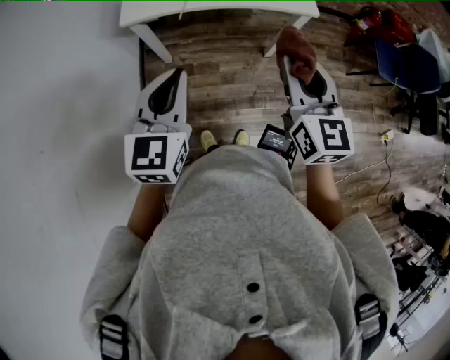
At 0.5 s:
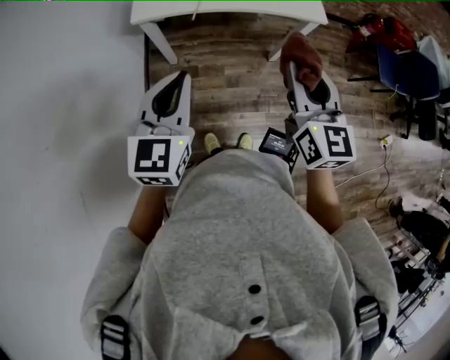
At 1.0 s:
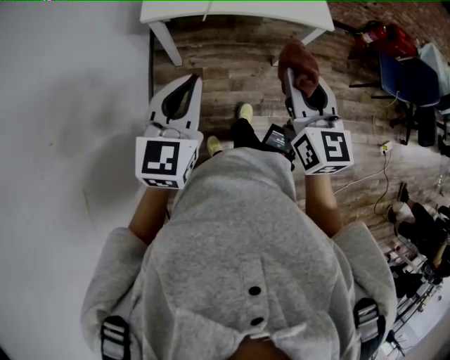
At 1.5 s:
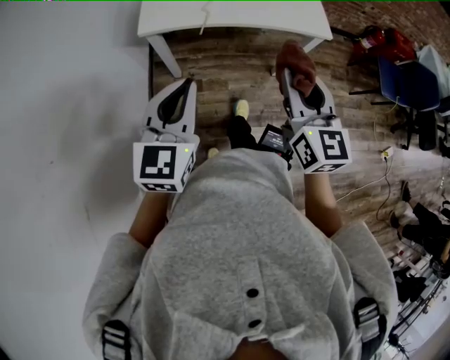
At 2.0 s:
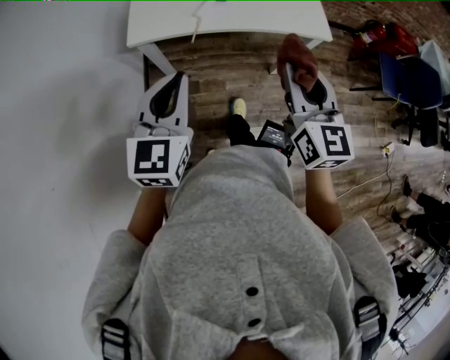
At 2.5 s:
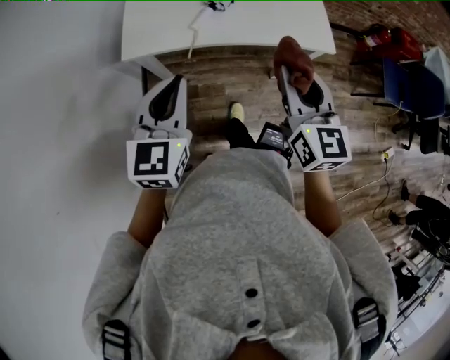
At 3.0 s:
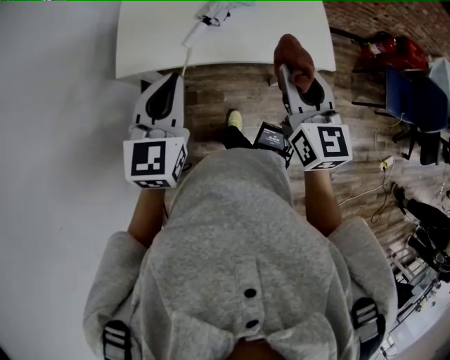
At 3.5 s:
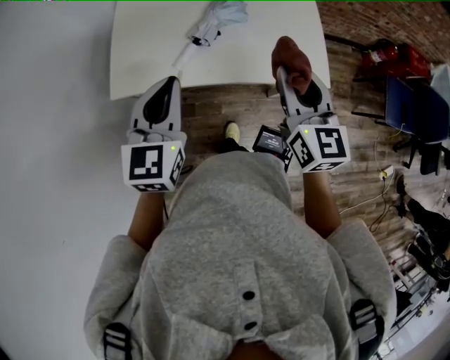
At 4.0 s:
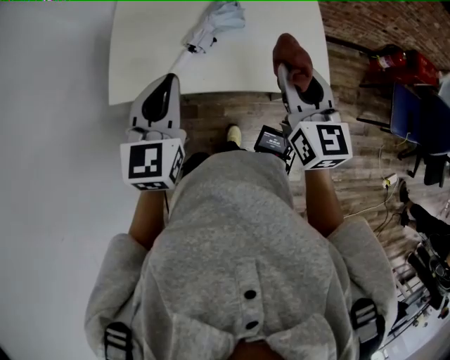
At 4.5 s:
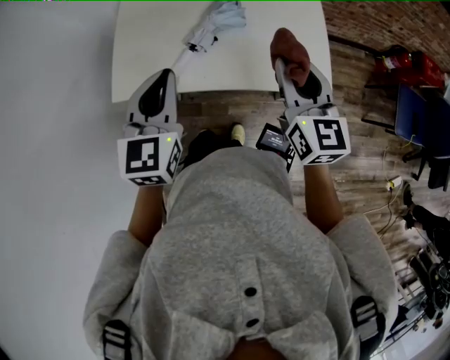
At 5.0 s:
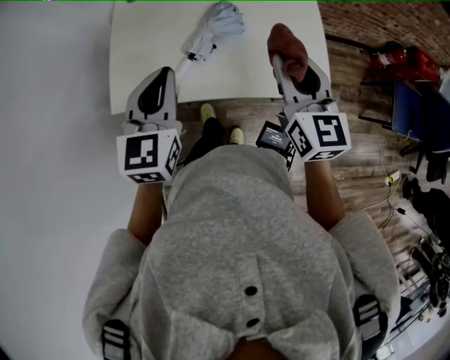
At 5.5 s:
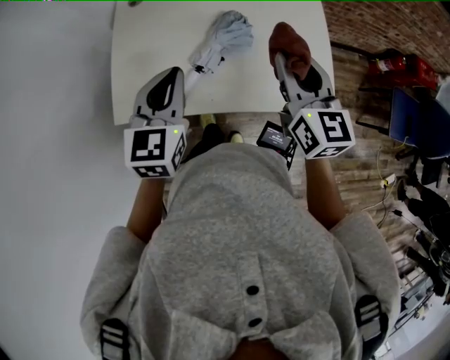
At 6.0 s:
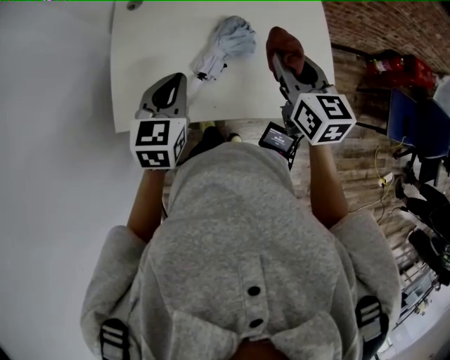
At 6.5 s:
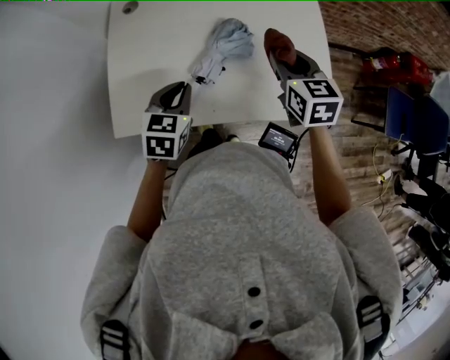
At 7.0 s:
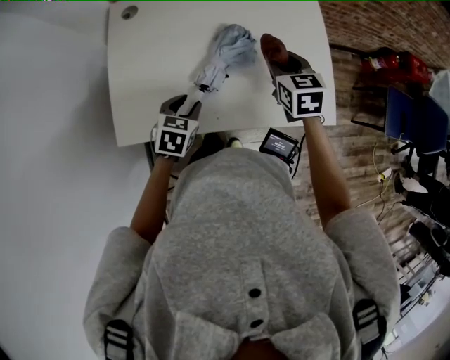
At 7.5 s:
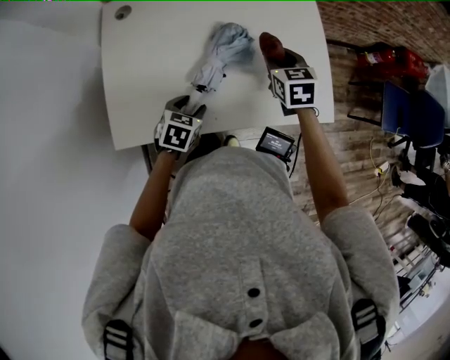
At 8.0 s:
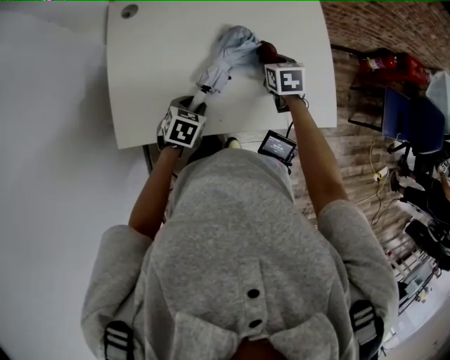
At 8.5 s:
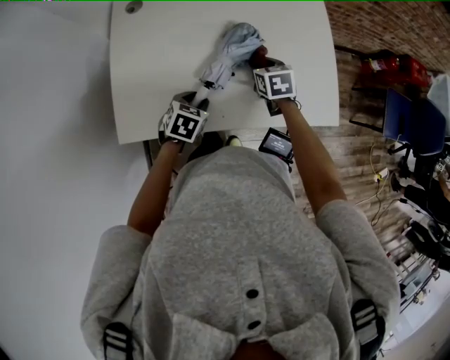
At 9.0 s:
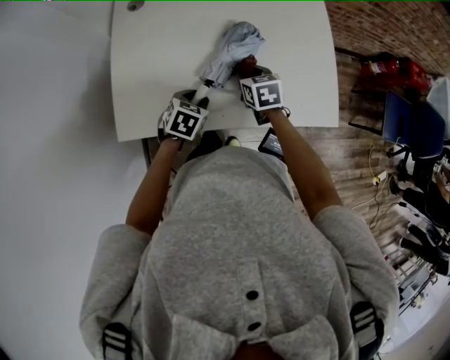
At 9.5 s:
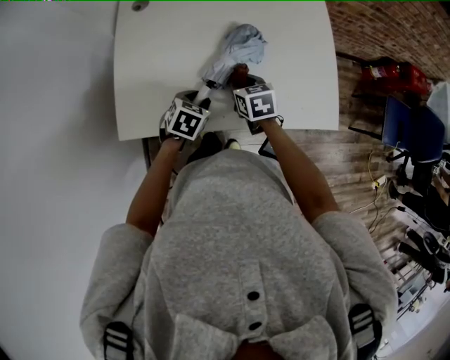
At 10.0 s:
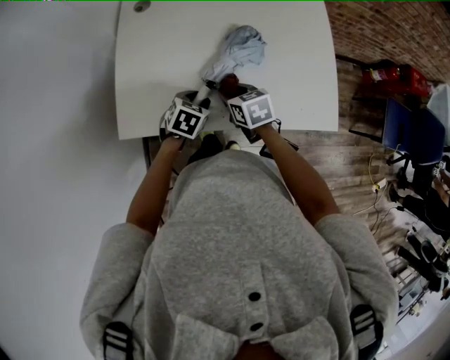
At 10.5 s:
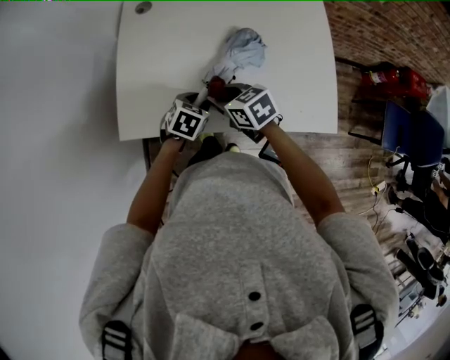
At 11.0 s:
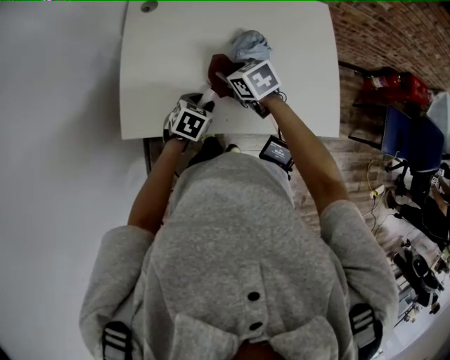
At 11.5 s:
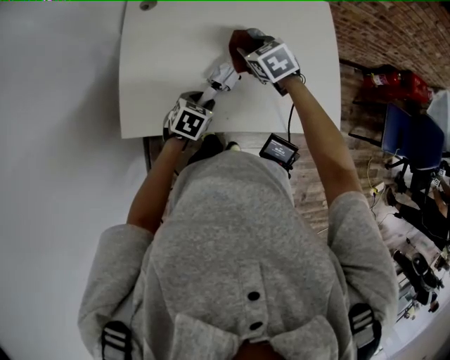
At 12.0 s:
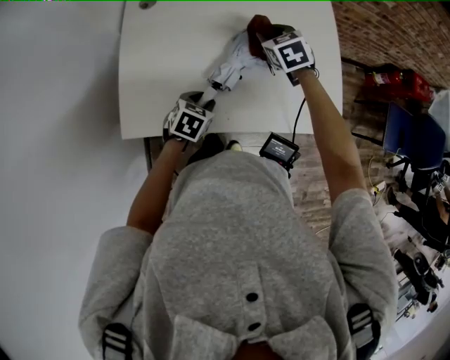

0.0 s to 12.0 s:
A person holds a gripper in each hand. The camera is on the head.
0.0 to 2.0 s: Both grippers move forward and to the left, approximately 10 cm.
2.0 to 4.0 s: Both grippers travel together forward, some 30 cm.
4.0 to 6.0 s: The left gripper shifts about 15 cm forward and downward. Meanwhile the right gripper is displaced forward by roughly 15 cm.
6.0 to 8.0 s: The left gripper goes approximately 20 cm downward, turns by about 30 degrees, and opens its fingers. The right gripper goes about 20 cm downward and forward, and turns by some 30 degrees.
8.0 to 10.0 s: The right gripper shifts approximately 20 cm to the left and backward, and rotates approximately 20 degrees.
10.0 to 12.0 s: The right gripper shifts roughly 20 cm forward, to the right and upward, and turns by approximately 30 degrees.

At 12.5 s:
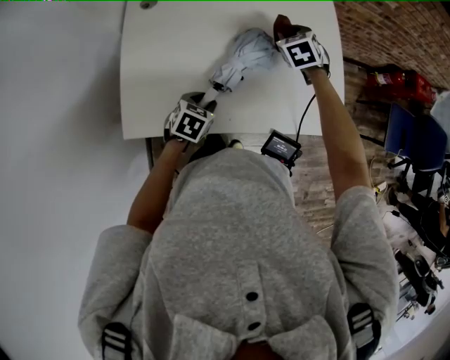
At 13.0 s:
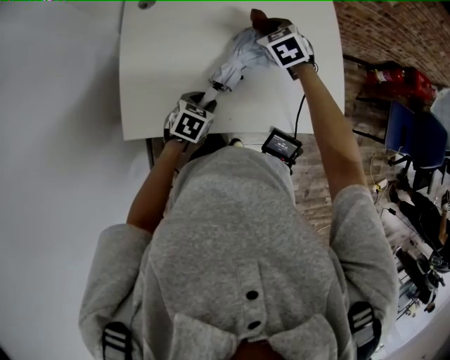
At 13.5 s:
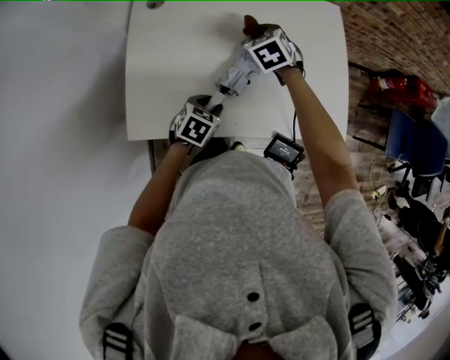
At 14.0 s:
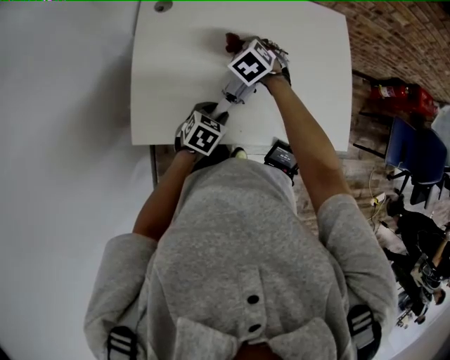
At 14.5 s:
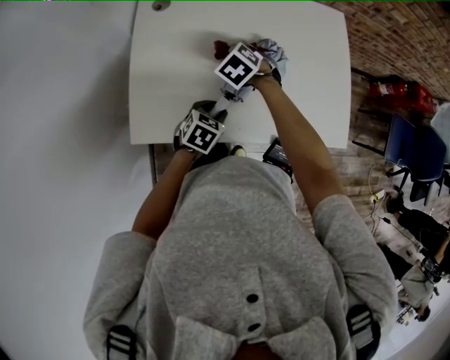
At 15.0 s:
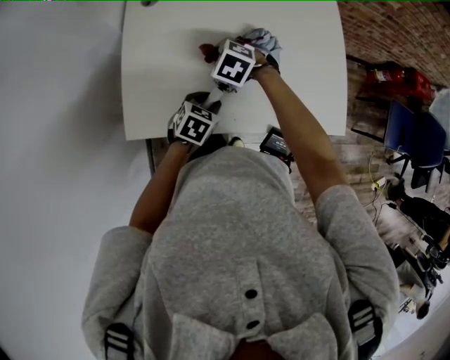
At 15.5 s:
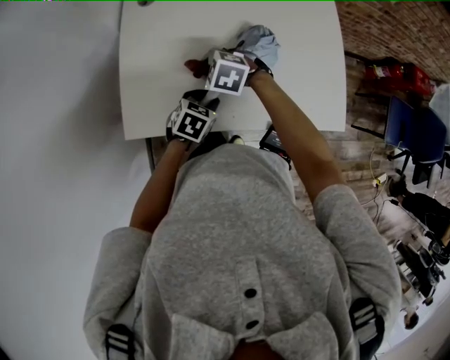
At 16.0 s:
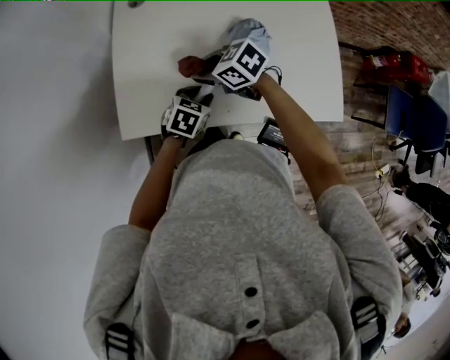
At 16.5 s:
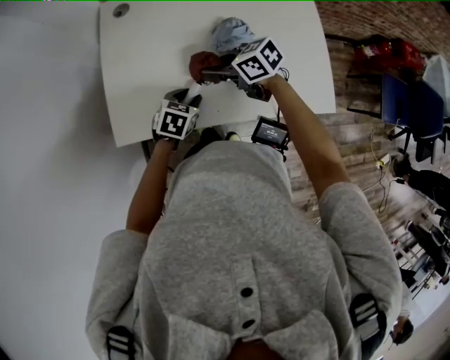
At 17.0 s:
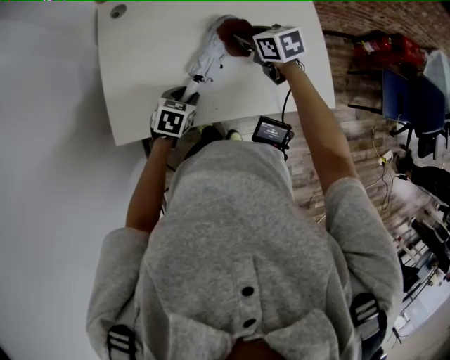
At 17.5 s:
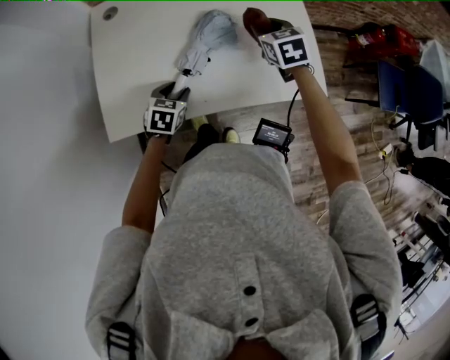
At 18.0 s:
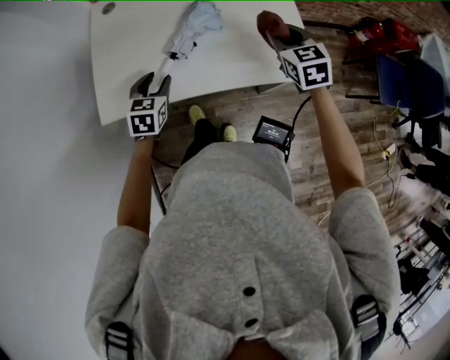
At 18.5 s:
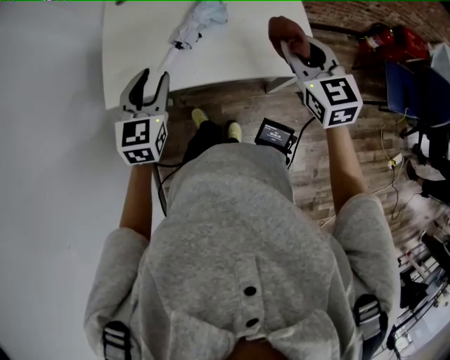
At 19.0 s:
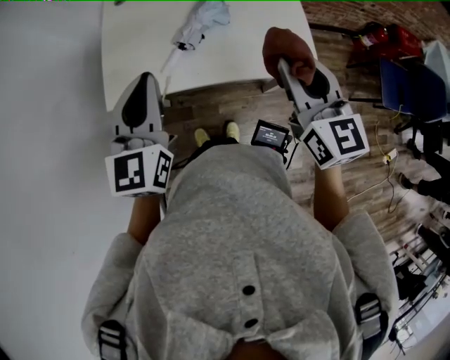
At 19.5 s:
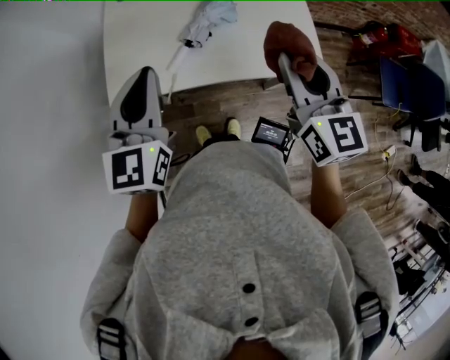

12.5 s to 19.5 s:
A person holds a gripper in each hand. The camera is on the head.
12.5 to 14.5 s: The right gripper shifts approximately 25 cm to the left and backward, and turns by approximately 30 degrees.
14.5 to 16.0 s: The right gripper changes place by approximately 10 cm, and rotates roughly 40 degrees.
16.0 to 17.5 s: The right gripper moves about 30 cm, and turns by about 50 degrees.
17.5 to 19.5 s: The right gripper moves backward and upward, roughly 35 cm, and tilts its fingers approximately 30 degrees upward, while the left gripper shifts roughly 35 cm upward, tilts its fingers some 40 degrees upward, and closes its fingers.

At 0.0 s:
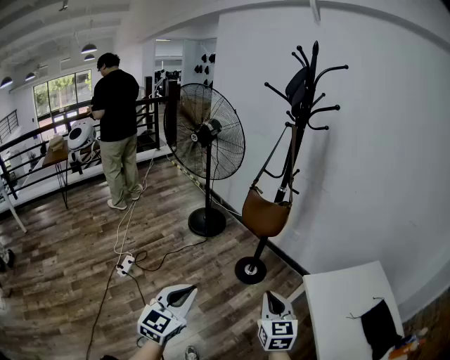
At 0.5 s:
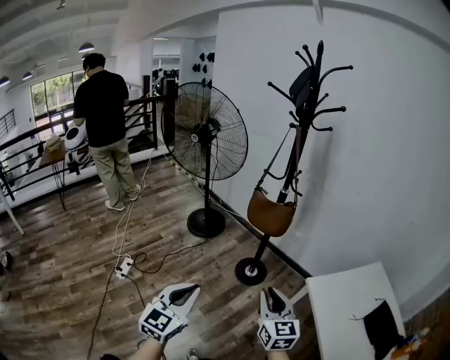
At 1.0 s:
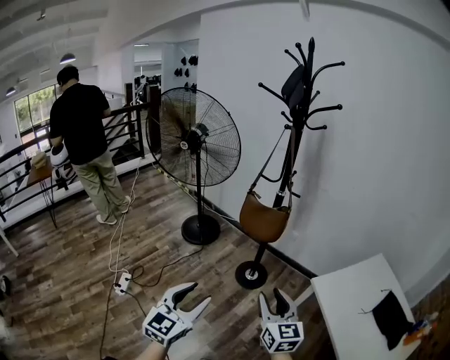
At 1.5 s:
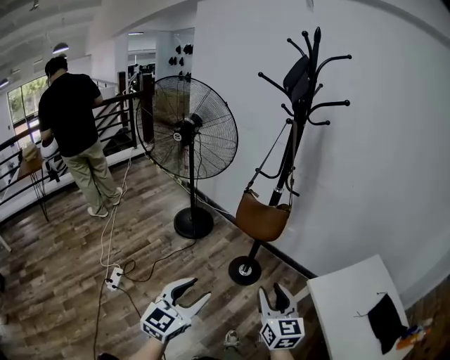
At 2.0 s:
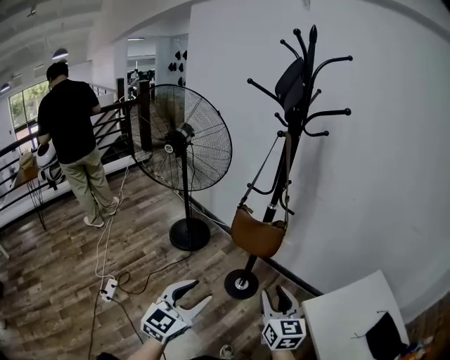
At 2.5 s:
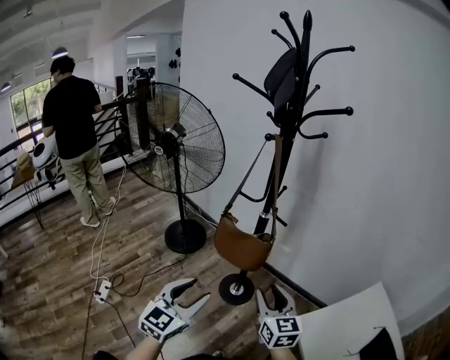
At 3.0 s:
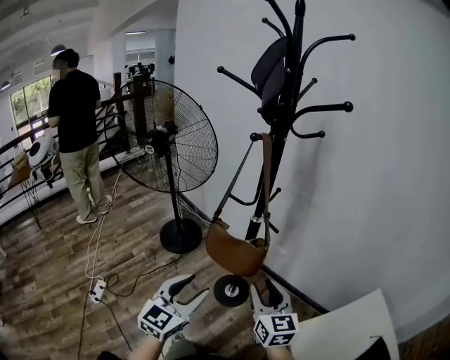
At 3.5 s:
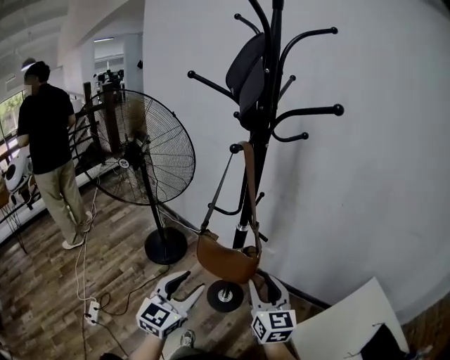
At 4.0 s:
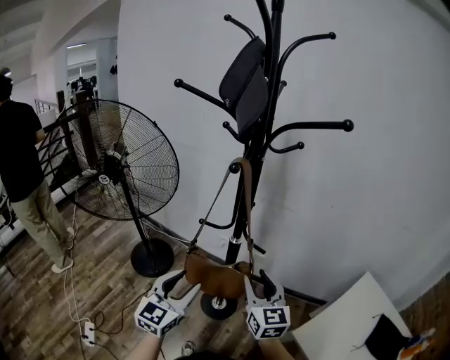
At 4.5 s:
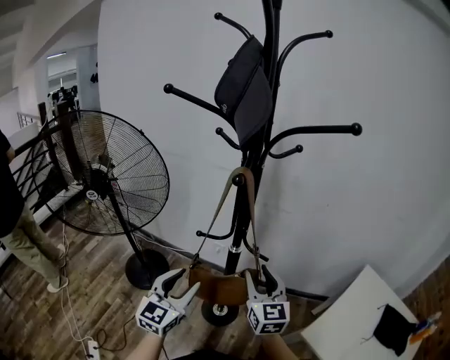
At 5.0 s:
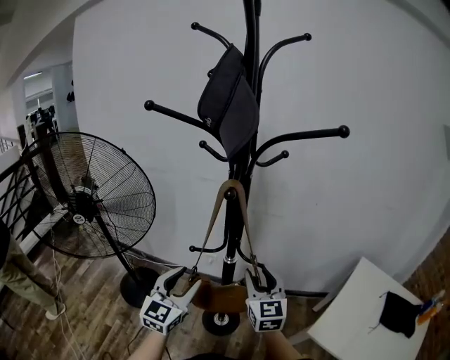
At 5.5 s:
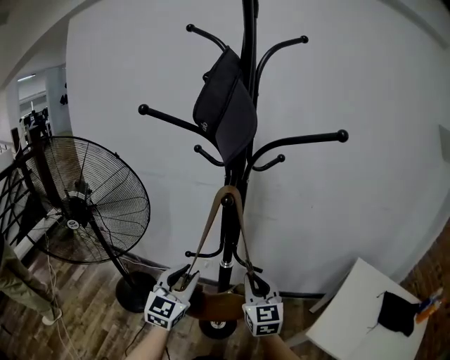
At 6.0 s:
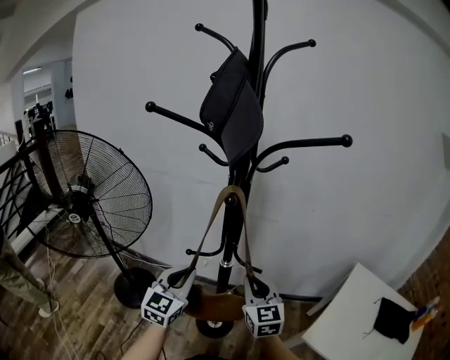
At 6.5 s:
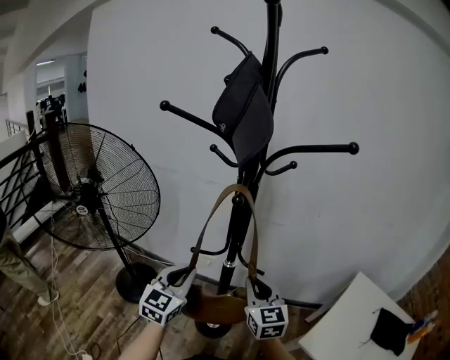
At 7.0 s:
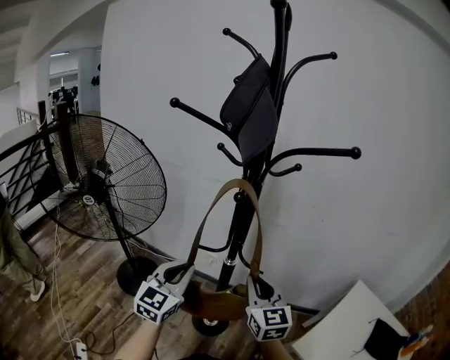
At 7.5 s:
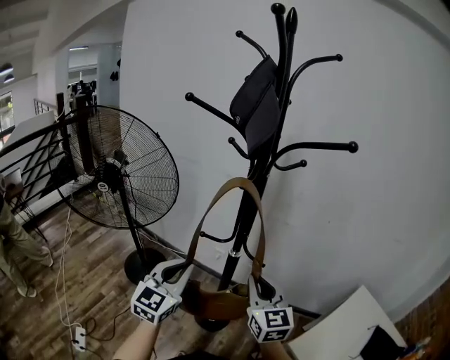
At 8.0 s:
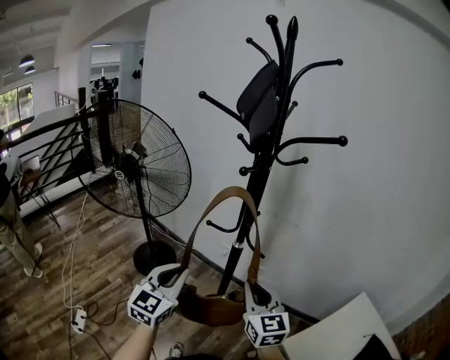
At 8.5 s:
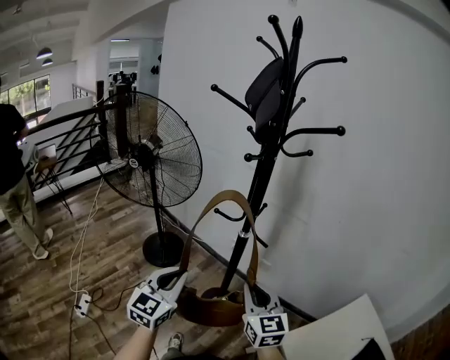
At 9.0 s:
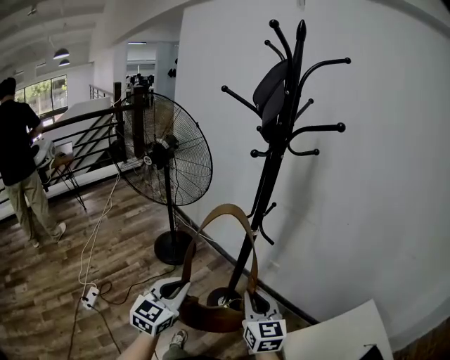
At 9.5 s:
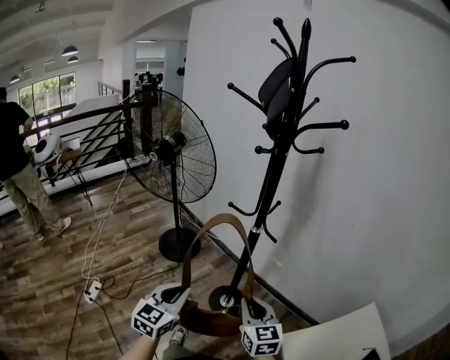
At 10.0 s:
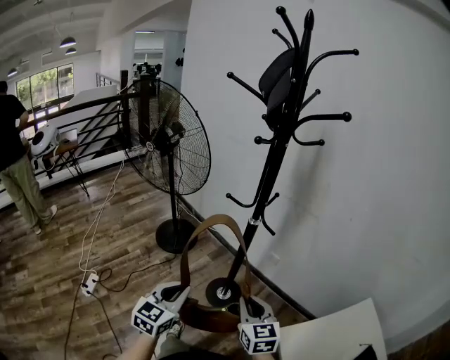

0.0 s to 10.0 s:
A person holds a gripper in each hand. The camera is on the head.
0.0 to 2.0 s: The two grippers go some 20 cm forward. The right gripper opens. Meanwhile the left gripper opens.
2.0 to 4.0 s: Both grippers travel together forward, roughly 25 cm.
4.0 to 6.0 s: The right gripper moves forward, some 5 cm, and closes its fingers. The left gripper heads forward, covering roughly 15 cm, and closes up.
6.0 to 8.0 s: Both grippers travel together backward, about 15 cm. The right gripper rotates roughly 20 degrees.
8.0 to 10.0 s: The right gripper moves downward and backward, roughly 15 cm. Meanwhile the left gripper is displaced backward and downward by some 20 cm.
